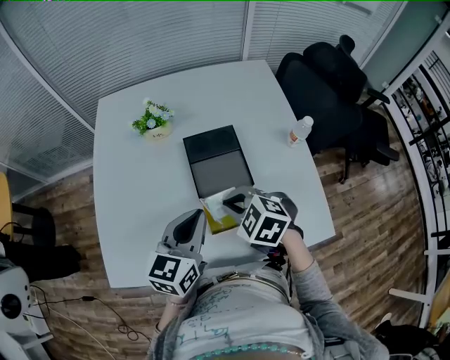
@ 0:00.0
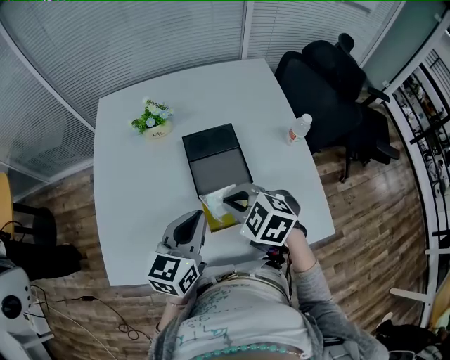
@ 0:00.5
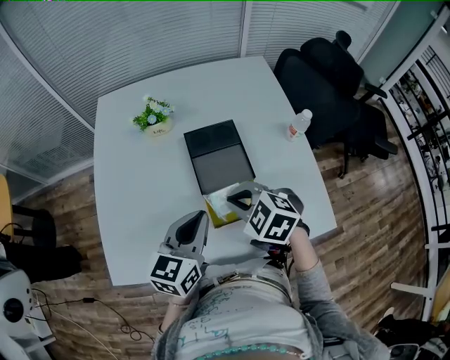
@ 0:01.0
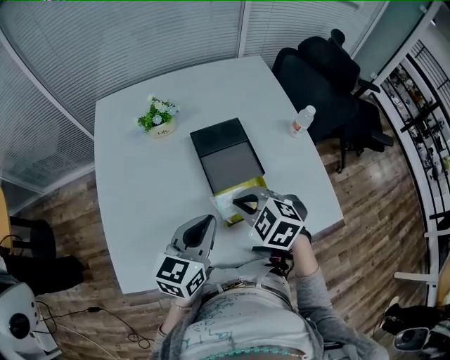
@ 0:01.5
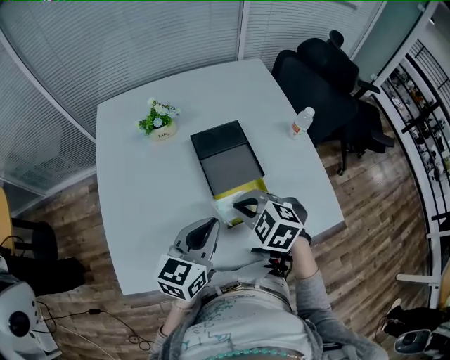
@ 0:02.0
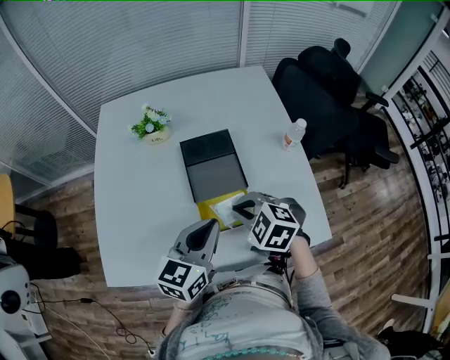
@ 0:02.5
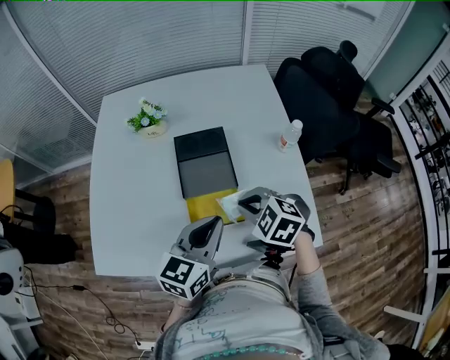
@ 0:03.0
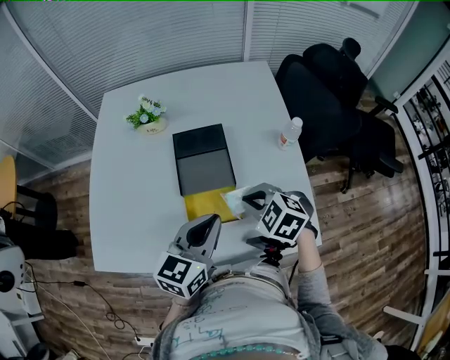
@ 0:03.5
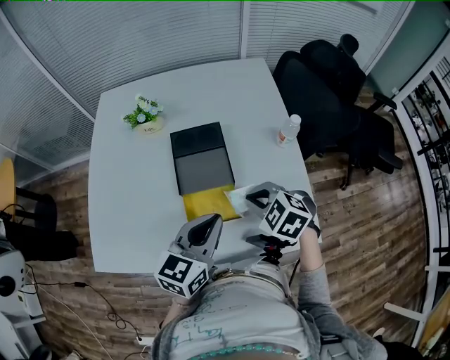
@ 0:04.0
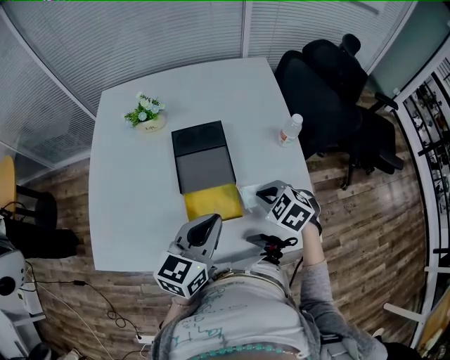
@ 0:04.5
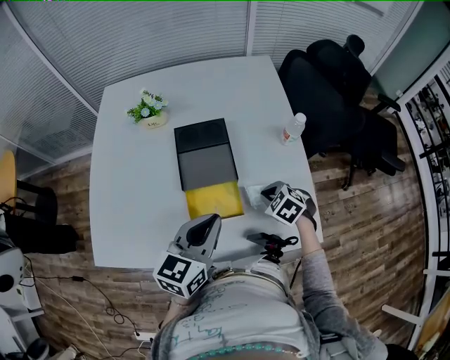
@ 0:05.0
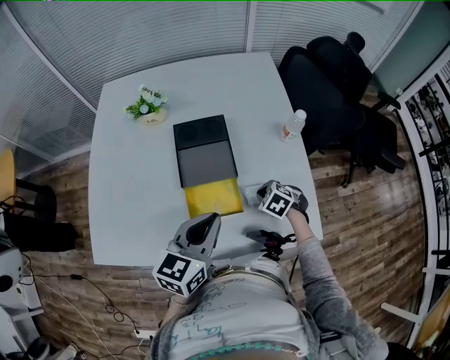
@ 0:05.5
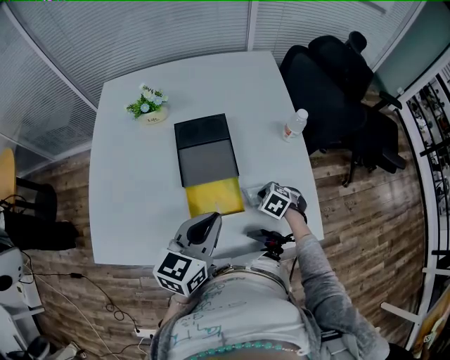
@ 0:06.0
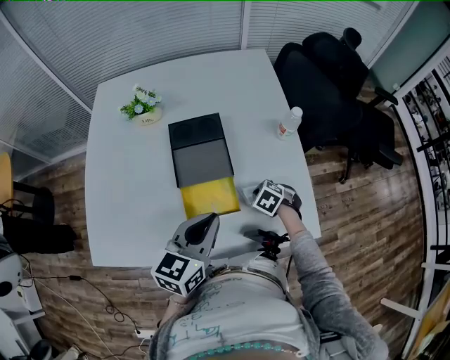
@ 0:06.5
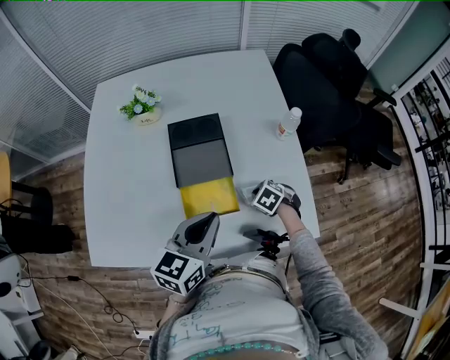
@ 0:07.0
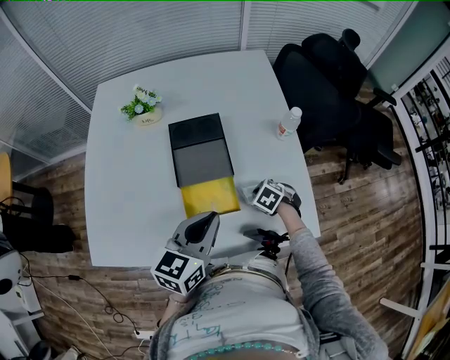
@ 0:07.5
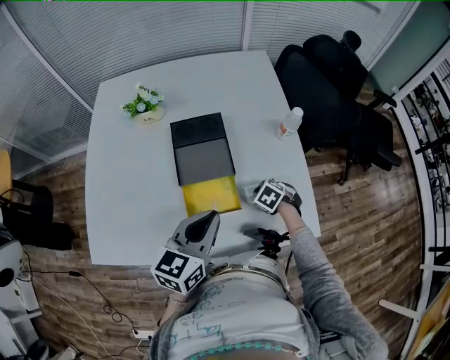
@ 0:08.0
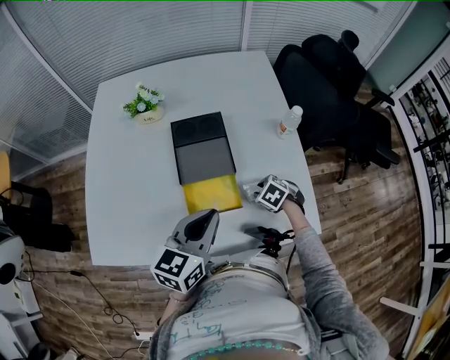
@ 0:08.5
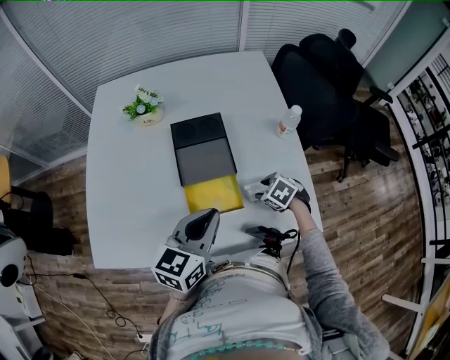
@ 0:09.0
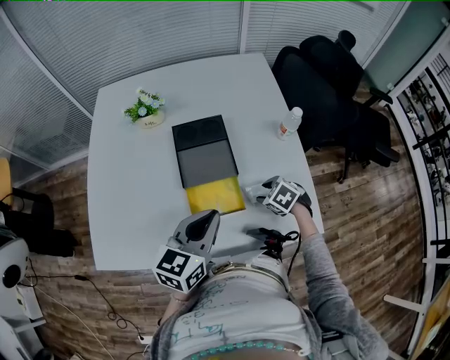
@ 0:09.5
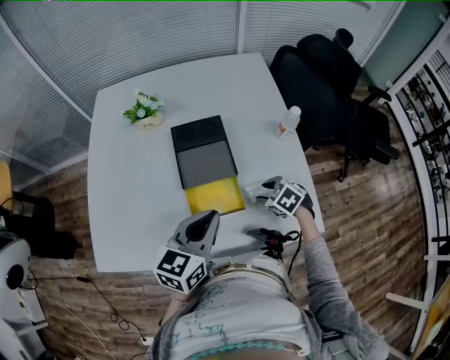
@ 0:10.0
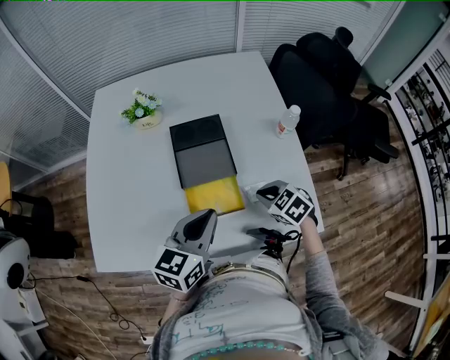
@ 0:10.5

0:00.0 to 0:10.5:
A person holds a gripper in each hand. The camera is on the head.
0:00.0 to 0:02.0: The left gripper changes place by approximately 5 cm.
0:02.0 to 0:04.0: Both grippers move to the right, some 20 cm.
0:04.0 to 0:06.5: The right gripper moves downward, roughly 20 cm, and changes its angle by some 20 degrees.
0:06.5 to 0:08.5: The right gripper opens.
0:08.5 to 0:10.5: The right gripper moves upward, approximately 10 cm, and closes its fingers.

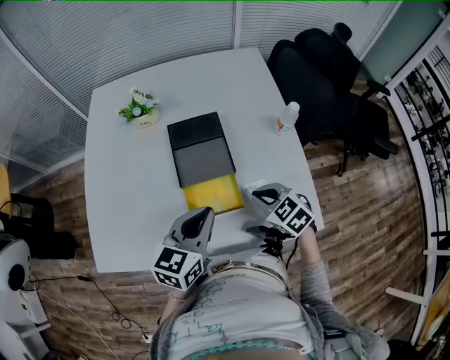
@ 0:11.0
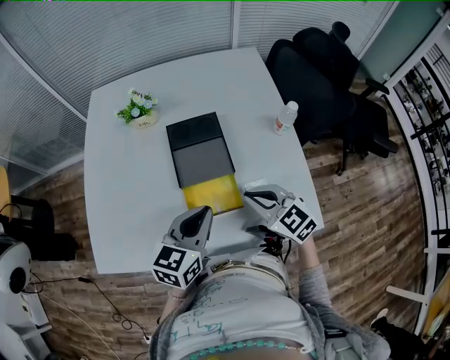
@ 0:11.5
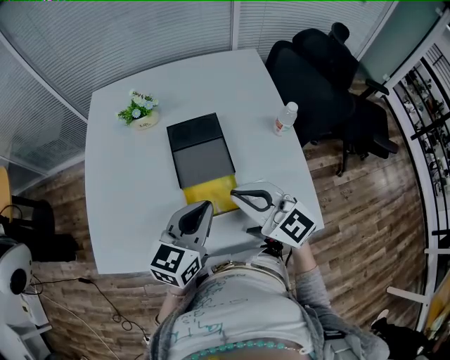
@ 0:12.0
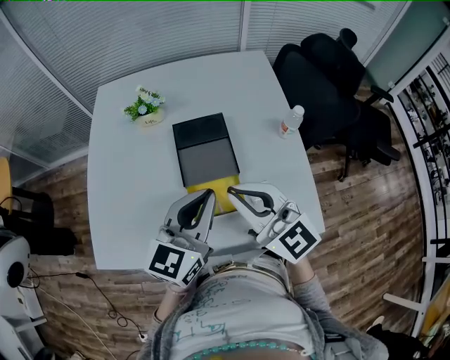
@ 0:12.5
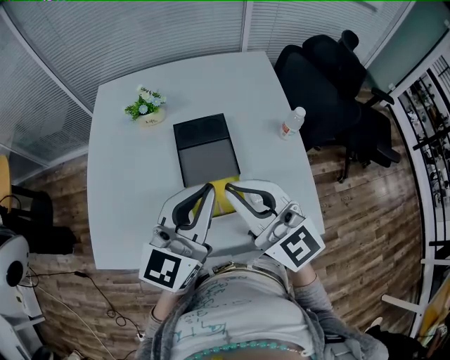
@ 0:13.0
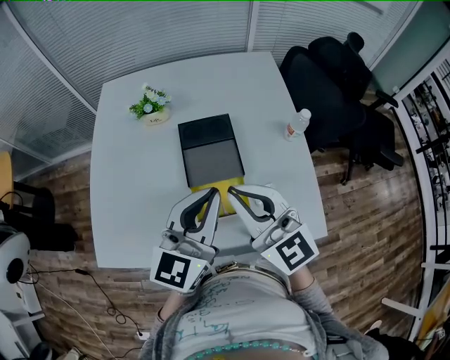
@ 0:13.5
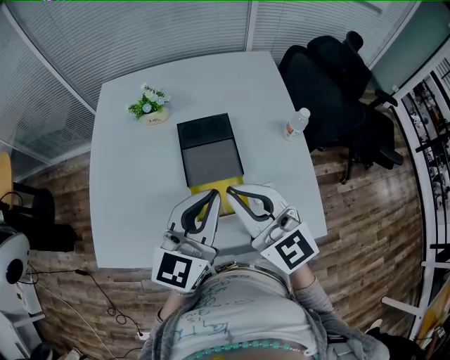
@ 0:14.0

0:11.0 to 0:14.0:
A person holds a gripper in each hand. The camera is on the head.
0:11.0 to 0:12.5: The left gripper is displaced upward by roughly 10 cm. The right gripper shifts approximately 25 cm upward and to the left, and tips its fingers upward by roughly 50 degrees.
0:12.5 to 0:14.0: The grippers stay close to where they were, moving slightly.

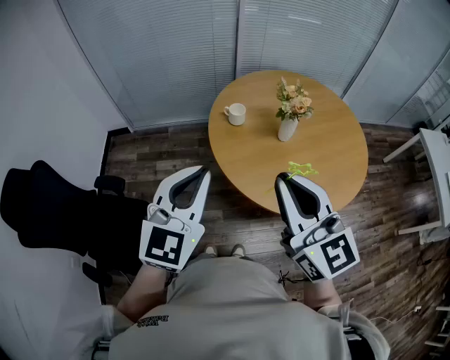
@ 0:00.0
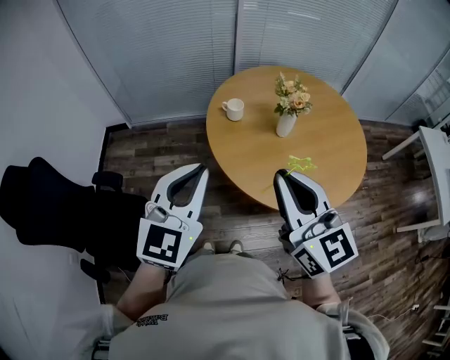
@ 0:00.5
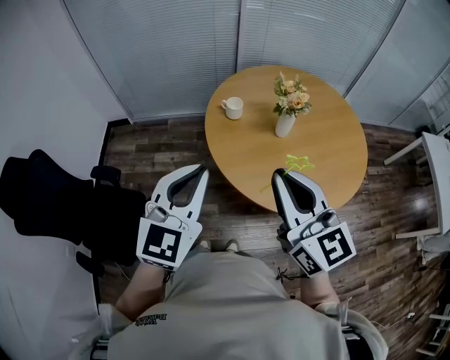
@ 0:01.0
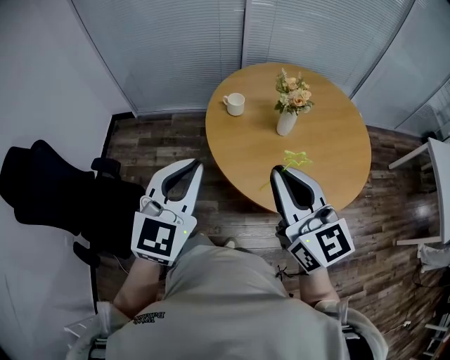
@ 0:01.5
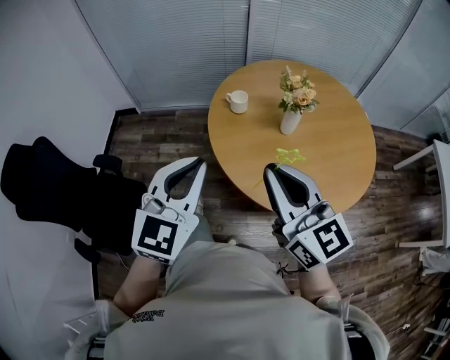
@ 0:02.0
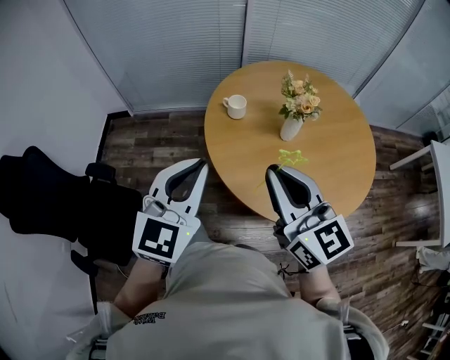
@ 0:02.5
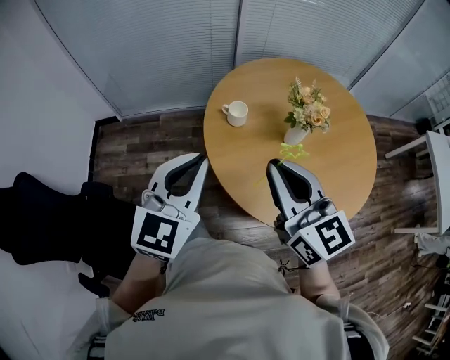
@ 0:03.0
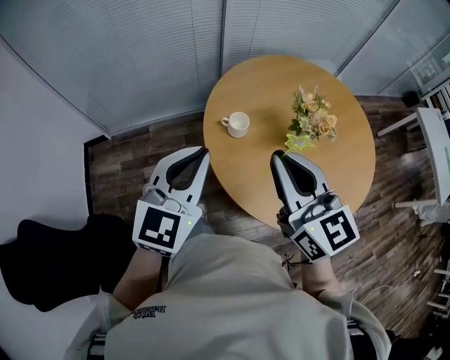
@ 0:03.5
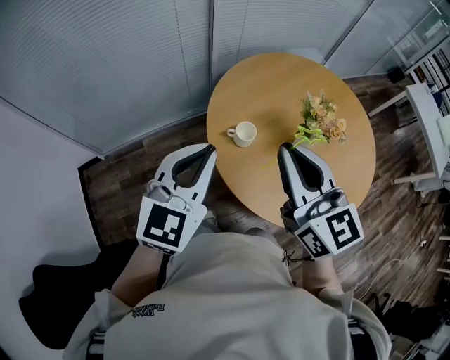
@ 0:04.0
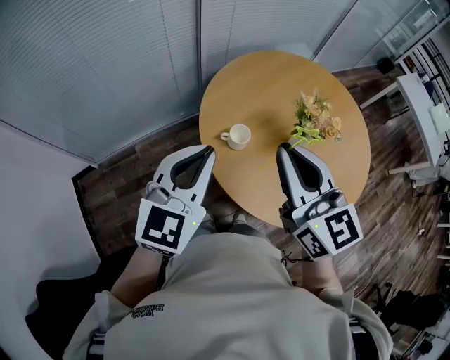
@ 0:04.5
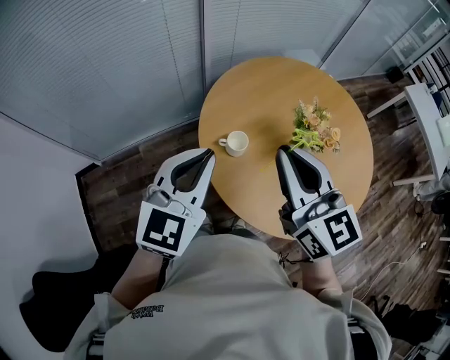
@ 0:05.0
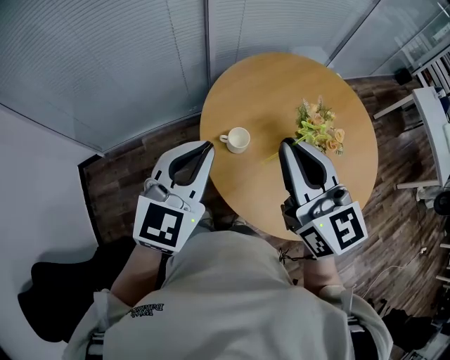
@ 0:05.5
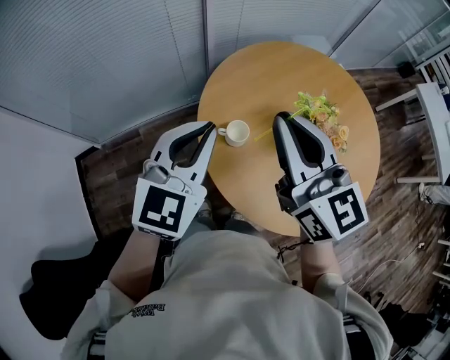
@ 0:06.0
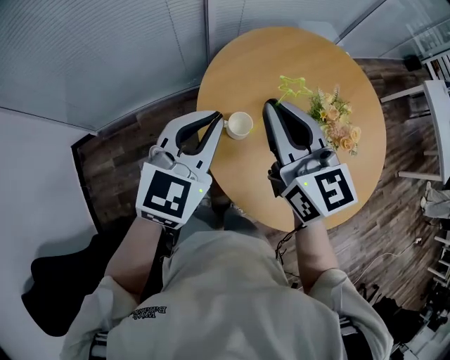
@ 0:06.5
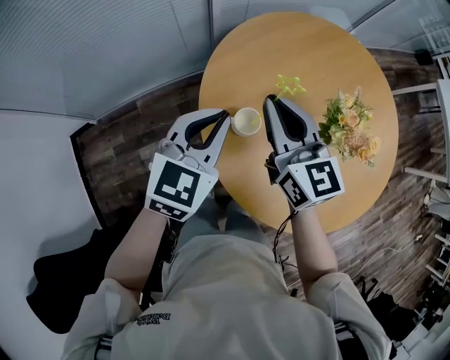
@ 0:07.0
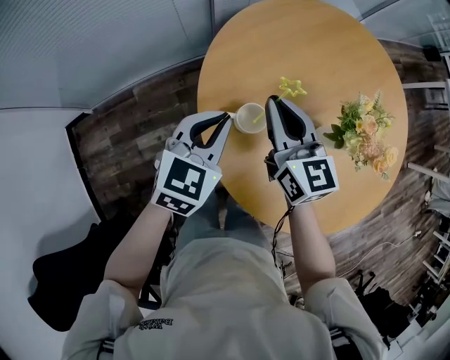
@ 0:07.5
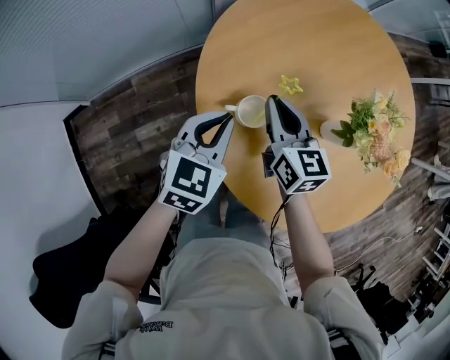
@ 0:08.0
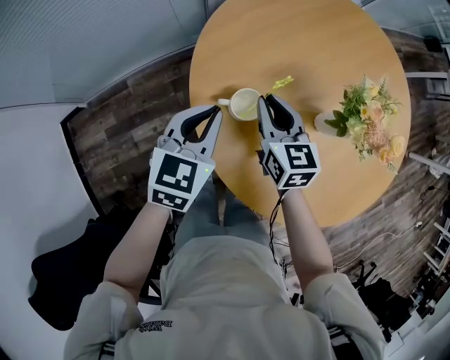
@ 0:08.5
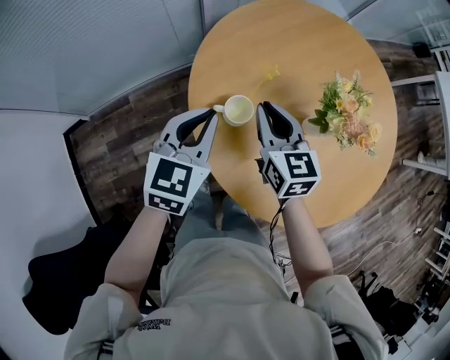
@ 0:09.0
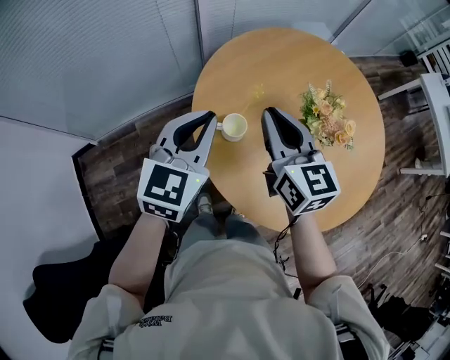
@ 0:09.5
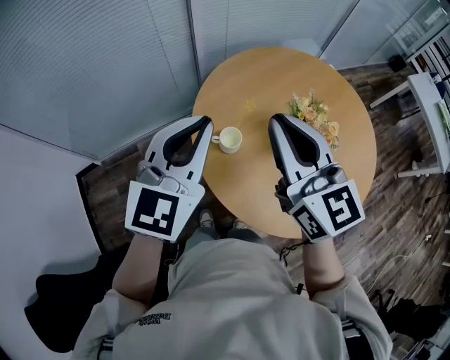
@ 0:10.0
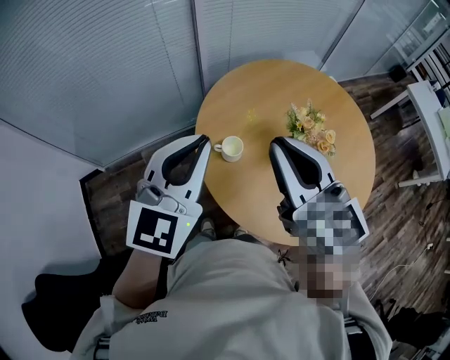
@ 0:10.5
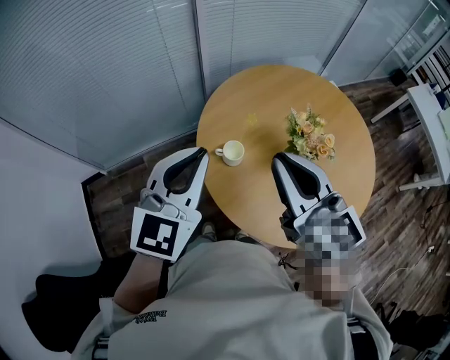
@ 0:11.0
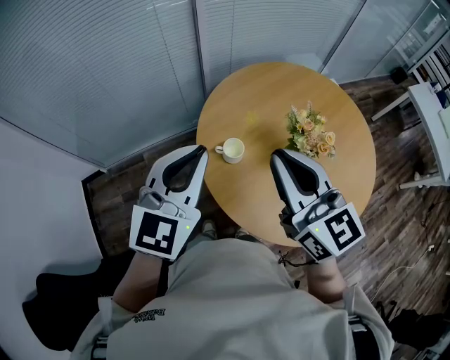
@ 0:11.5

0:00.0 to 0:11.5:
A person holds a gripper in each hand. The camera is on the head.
0:00.0 to 0:02.0: The right gripper shifts some 5 cm downward. The left gripper shifts by some 5 cm.
0:02.0 to 0:04.0: The right gripper changes place by roughly 35 cm, and rotates roughly 30 degrees. Meanwhile the left gripper changes place by some 35 cm, and changes its angle by approximately 30 degrees.
0:04.0 to 0:06.0: Both grippers move forward, roughly 10 cm.
0:06.0 to 0:07.5: The left gripper travels downward by roughly 20 cm, and turns by approximately 20 degrees; the right gripper shifts about 25 cm downward and forward.
0:07.5 to 0:09.5: The left gripper heads upward, covering some 15 cm, while the right gripper is displaced upward and backward by roughly 15 cm.
0:09.5 to 0:11.5: Both grippers travel together upward and backward, approximately 15 cm.

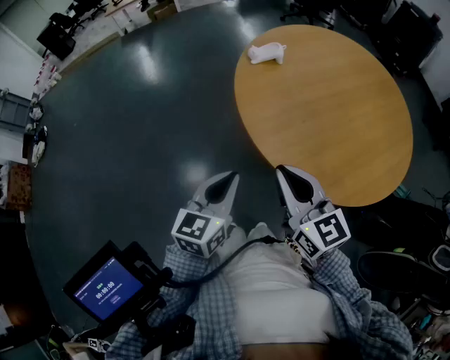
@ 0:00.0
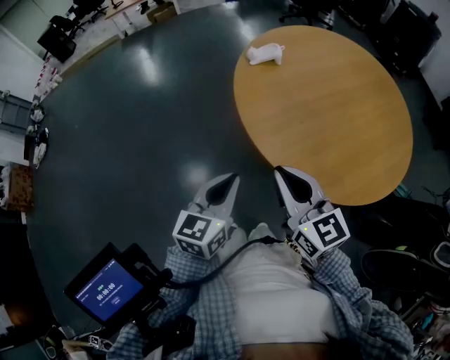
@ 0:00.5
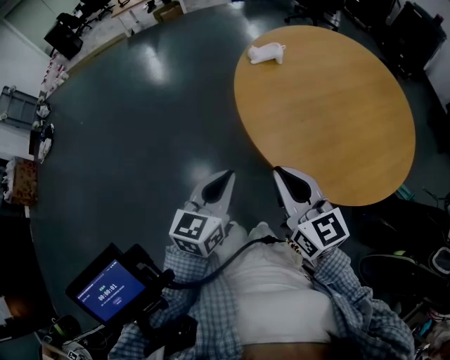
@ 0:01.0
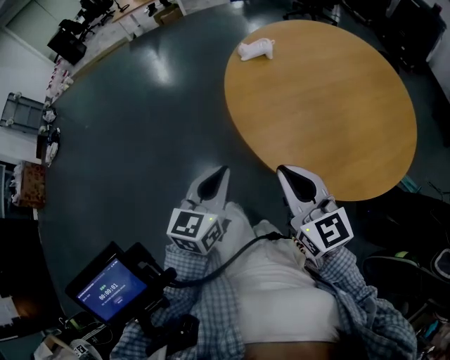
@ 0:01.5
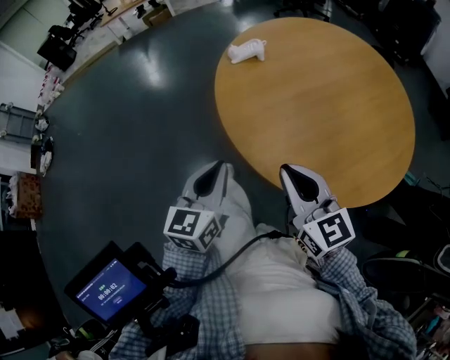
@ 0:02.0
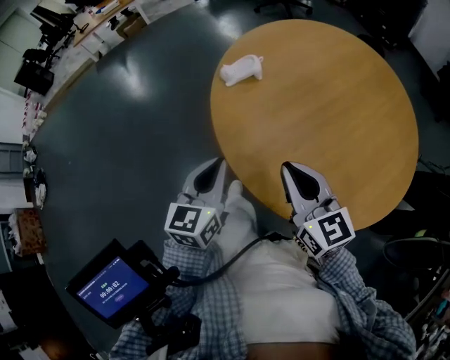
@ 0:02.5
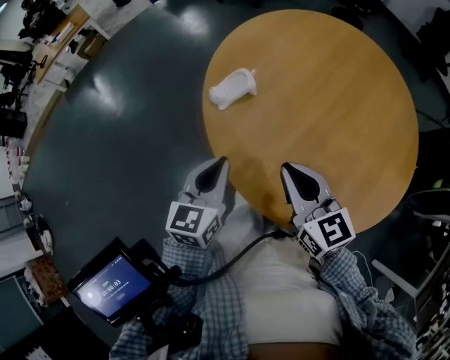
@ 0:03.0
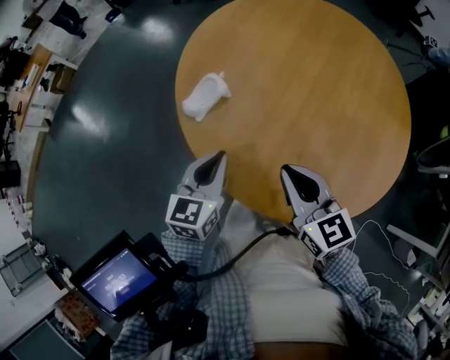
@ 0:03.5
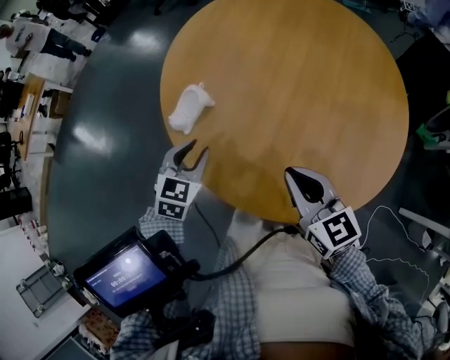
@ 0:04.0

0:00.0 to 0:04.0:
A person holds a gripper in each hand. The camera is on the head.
0:00.0 to 0:02.0: The grippers stay close to where they were, moving slightly.
0:02.0 to 0:04.0: The right gripper changes place by approximately 30 cm, and rotates some 40 degrees. The left gripper moves roughly 40 cm, and changes its angle by approximately 60 degrees.
